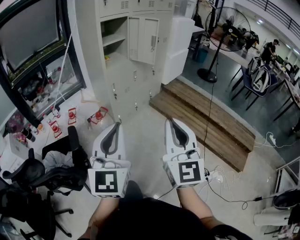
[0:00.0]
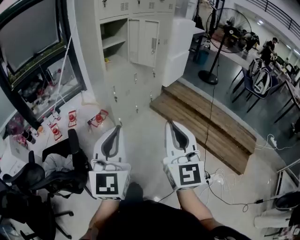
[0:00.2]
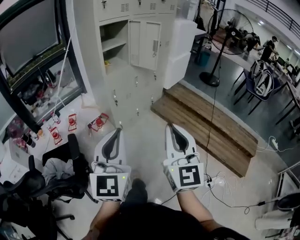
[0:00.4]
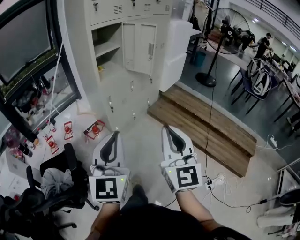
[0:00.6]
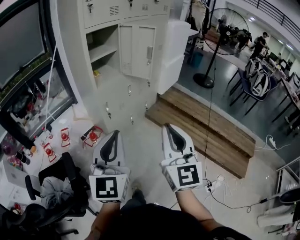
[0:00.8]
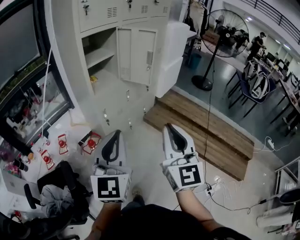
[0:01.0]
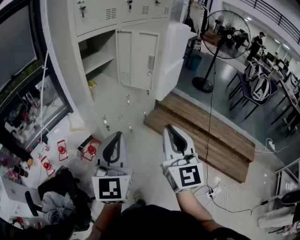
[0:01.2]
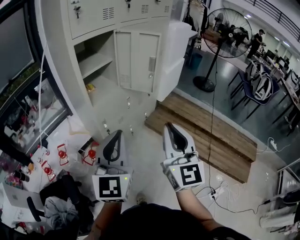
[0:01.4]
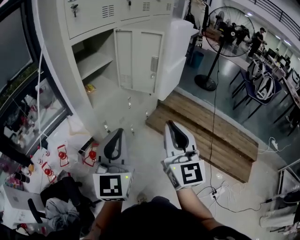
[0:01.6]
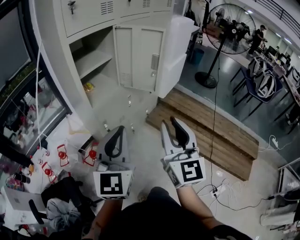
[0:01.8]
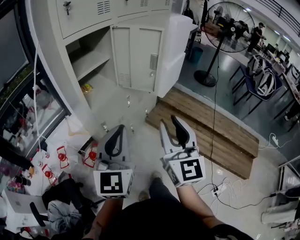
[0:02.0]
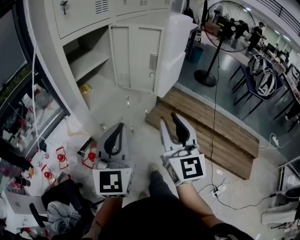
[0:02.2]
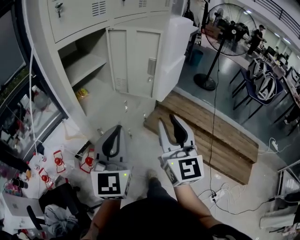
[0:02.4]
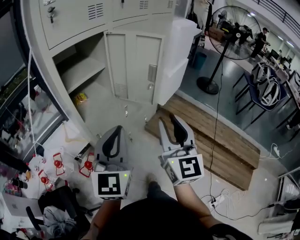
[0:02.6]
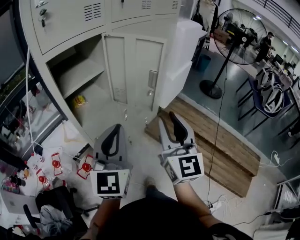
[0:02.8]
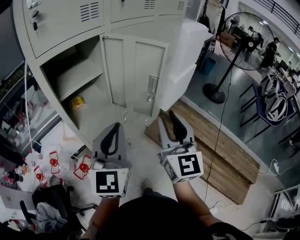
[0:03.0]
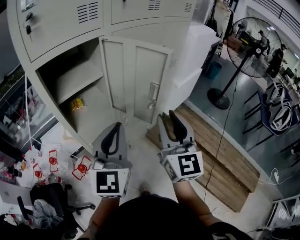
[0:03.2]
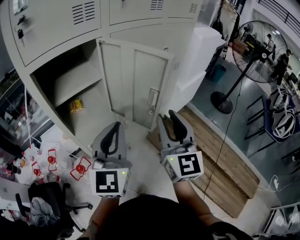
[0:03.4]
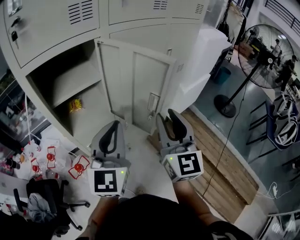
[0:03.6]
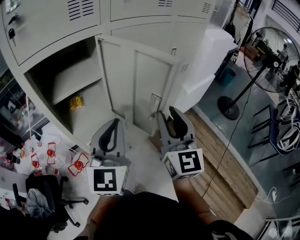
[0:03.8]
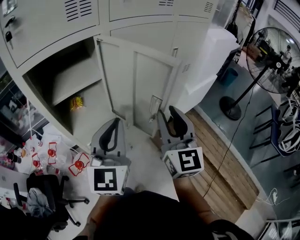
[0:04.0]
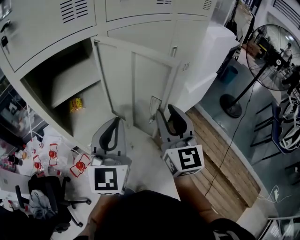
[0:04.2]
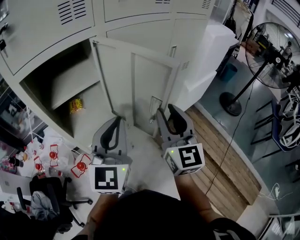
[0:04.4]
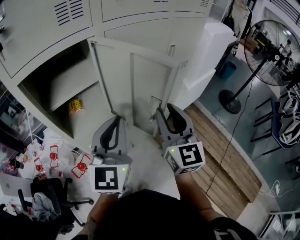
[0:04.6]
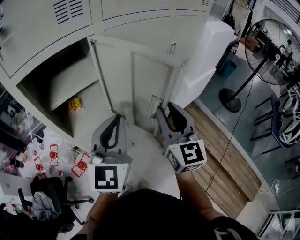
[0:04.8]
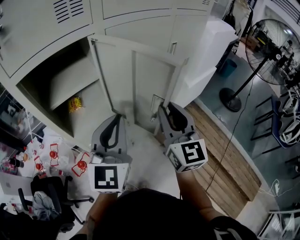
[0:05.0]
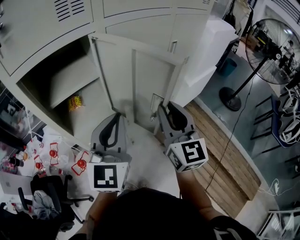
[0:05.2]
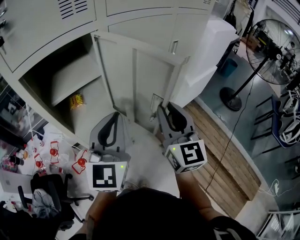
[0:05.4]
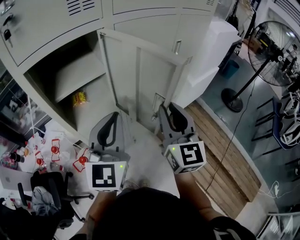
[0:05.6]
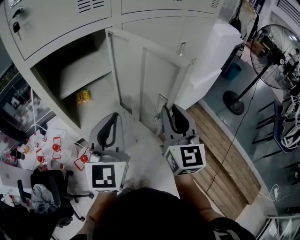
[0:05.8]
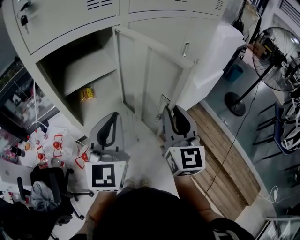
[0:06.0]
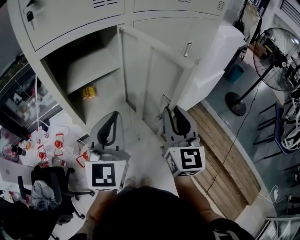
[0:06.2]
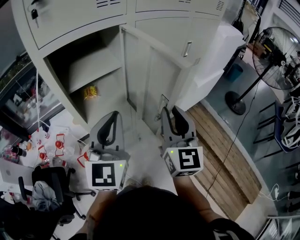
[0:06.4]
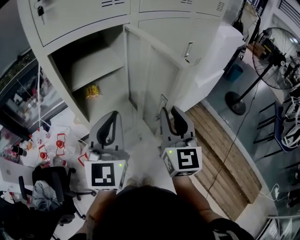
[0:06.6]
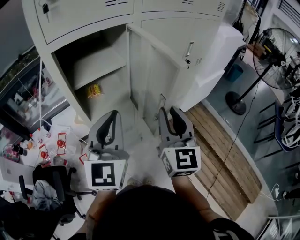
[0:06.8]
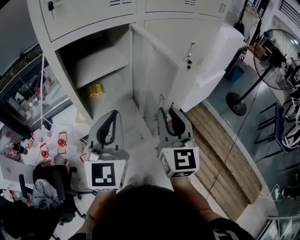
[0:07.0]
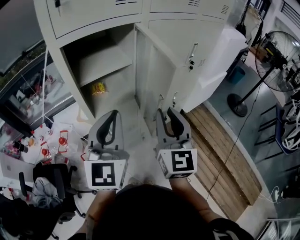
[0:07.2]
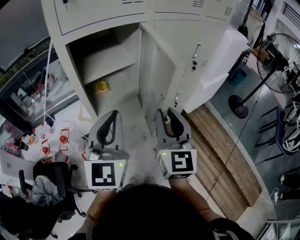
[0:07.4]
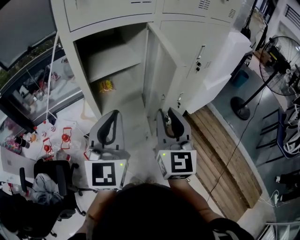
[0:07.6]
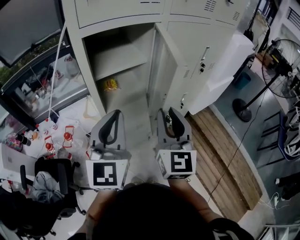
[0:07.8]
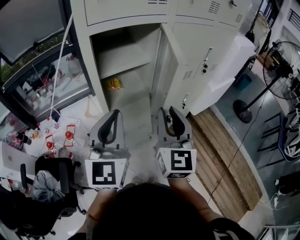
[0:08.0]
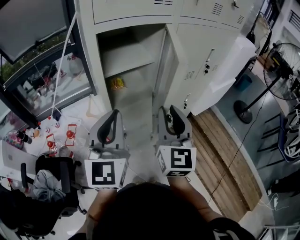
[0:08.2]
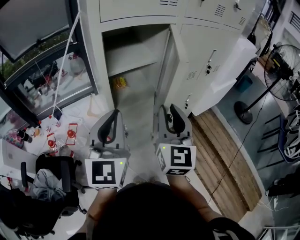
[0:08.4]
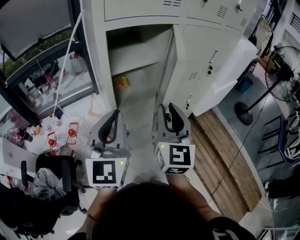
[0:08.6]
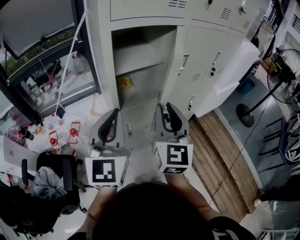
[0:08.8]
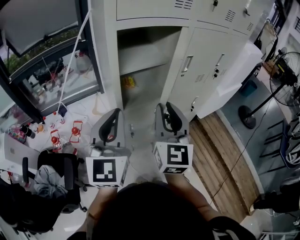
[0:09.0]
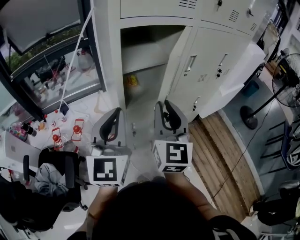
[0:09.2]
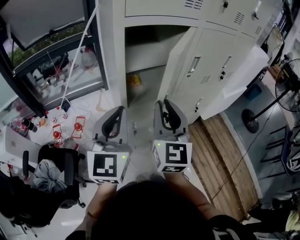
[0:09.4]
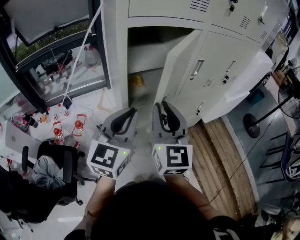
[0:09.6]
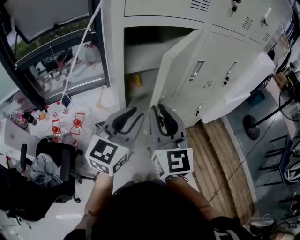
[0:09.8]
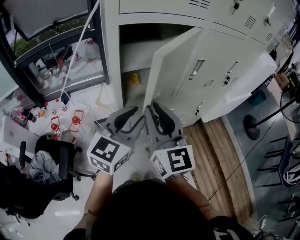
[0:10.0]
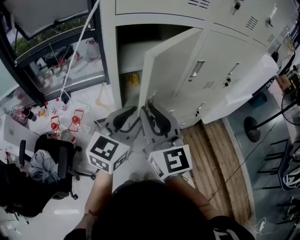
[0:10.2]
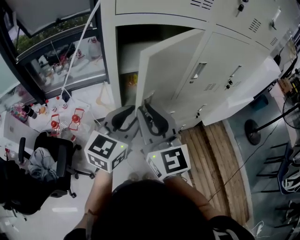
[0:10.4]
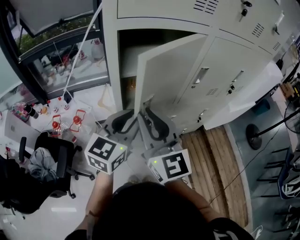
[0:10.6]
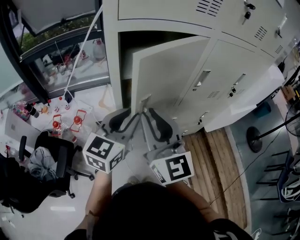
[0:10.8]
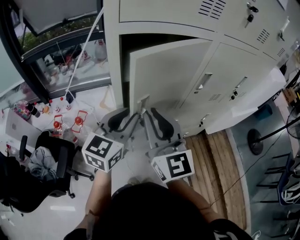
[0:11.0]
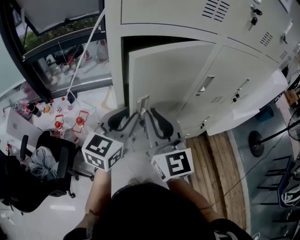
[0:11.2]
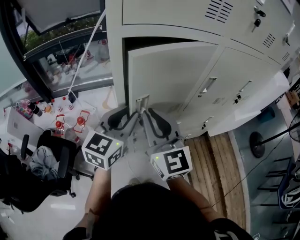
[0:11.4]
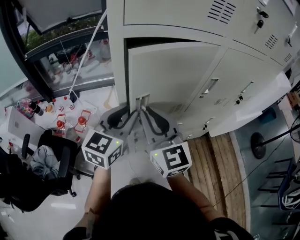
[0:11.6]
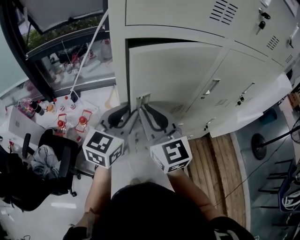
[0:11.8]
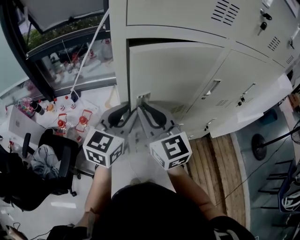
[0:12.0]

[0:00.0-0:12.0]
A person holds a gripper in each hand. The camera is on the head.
0:00.0 to 0:01.6: The two grippers go roughly 35 cm forward.
0:01.6 to 0:03.0: Both grippers move forward, approximately 20 cm. The right gripper opens.
0:03.0 to 0:04.4: The grippers both shift forward by approximately 15 cm.
0:04.4 to 0:06.0: The left gripper heads to the left, covering roughly 5 cm.
0:06.0 to 0:07.6: The grippers both shift to the left and backward by approximately 10 cm.
0:07.6 to 0:09.0: The grippers both shift to the left by approximately 10 cm.
0:09.0 to 0:10.4: The right gripper goes approximately 5 cm to the left, and rotates approximately 30 degrees; the left gripper moves forward, to the right and downward, some 10 cm, rotates roughly 20 degrees, and opens.
0:10.4 to 0:12.0: The grippers both shift forward by about 5 cm.

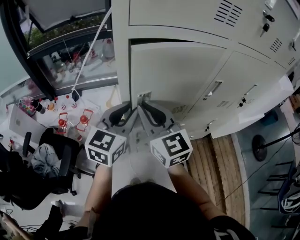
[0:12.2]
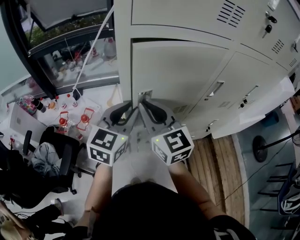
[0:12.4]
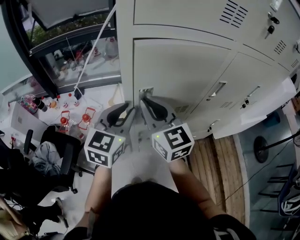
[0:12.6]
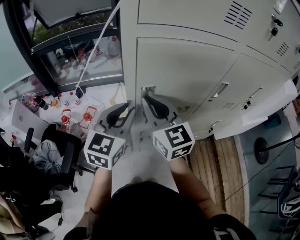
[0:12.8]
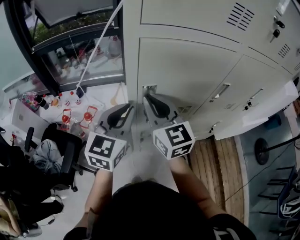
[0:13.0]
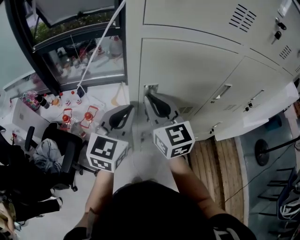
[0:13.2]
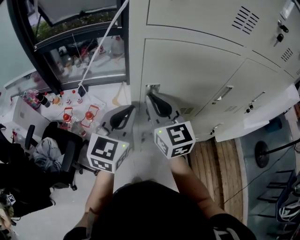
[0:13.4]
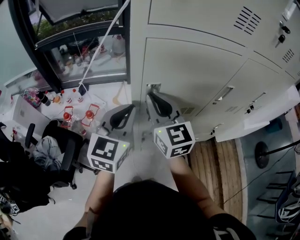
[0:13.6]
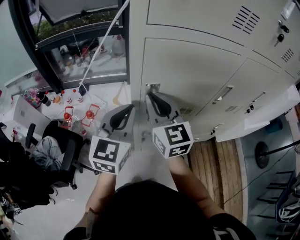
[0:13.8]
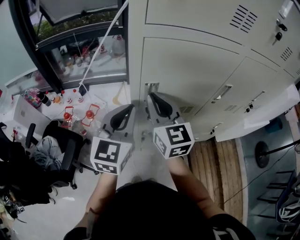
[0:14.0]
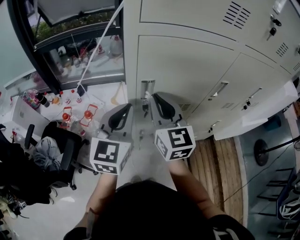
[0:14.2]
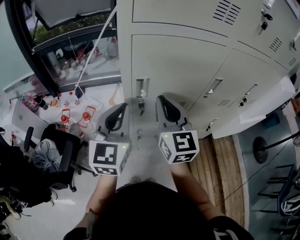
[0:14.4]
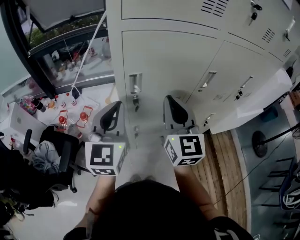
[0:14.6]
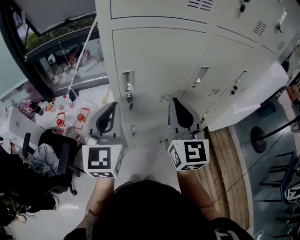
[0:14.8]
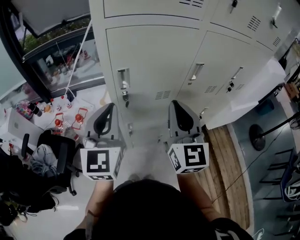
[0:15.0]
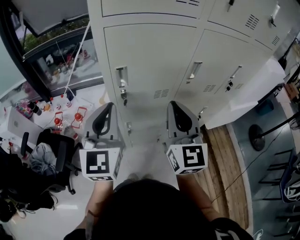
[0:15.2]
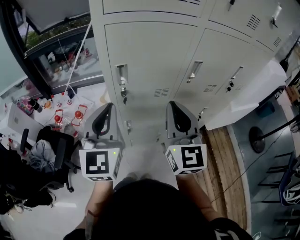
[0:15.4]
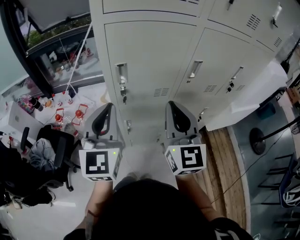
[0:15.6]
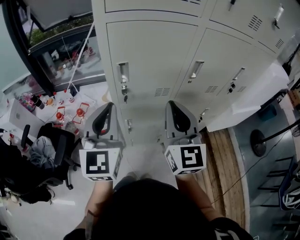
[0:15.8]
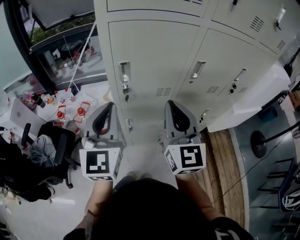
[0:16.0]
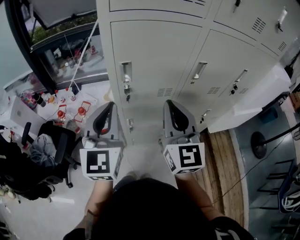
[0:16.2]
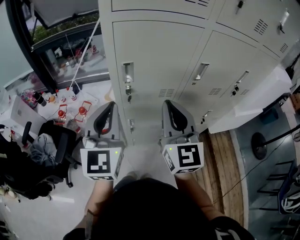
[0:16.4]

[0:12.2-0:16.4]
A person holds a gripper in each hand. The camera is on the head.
0:12.2 to 0:13.6: The grippers move only a little.
0:13.6 to 0:15.0: The right gripper goes about 20 cm to the right and backward, and swivels about 20 degrees. The left gripper moves backward, roughly 5 cm.
0:15.0 to 0:16.4: The grippers stay close to where they were, moving slightly.

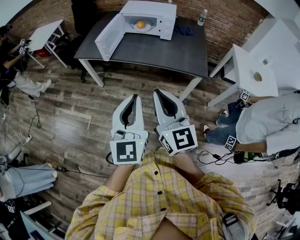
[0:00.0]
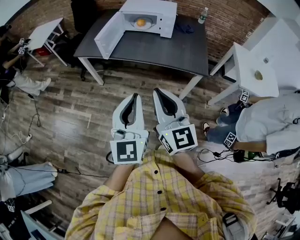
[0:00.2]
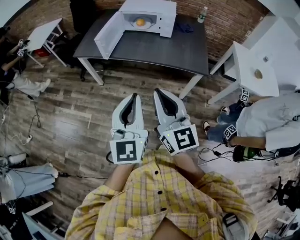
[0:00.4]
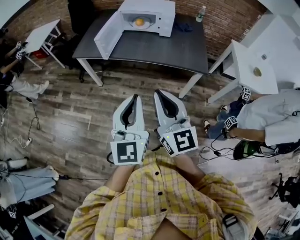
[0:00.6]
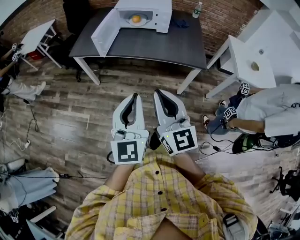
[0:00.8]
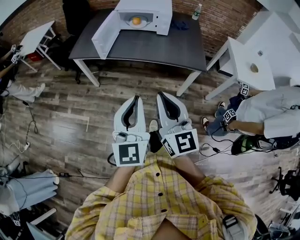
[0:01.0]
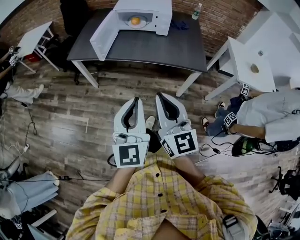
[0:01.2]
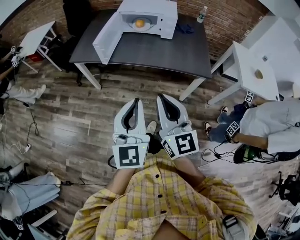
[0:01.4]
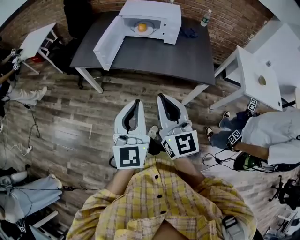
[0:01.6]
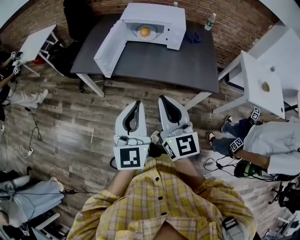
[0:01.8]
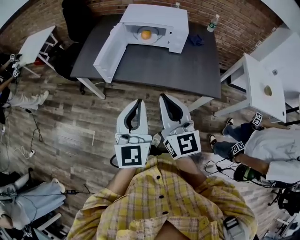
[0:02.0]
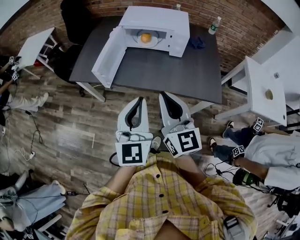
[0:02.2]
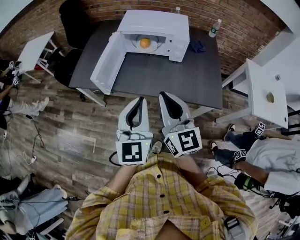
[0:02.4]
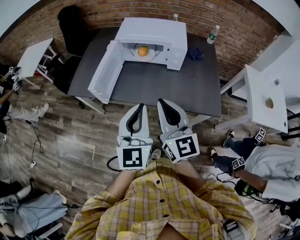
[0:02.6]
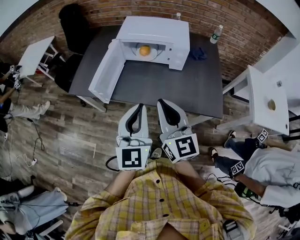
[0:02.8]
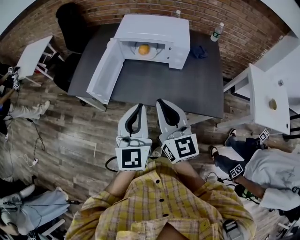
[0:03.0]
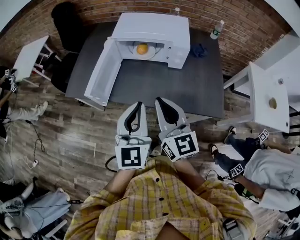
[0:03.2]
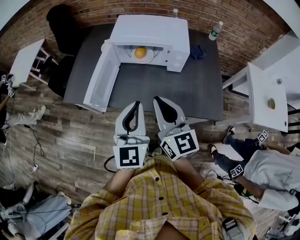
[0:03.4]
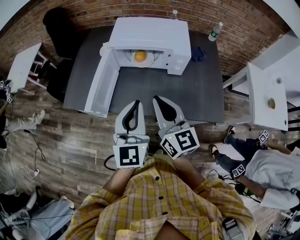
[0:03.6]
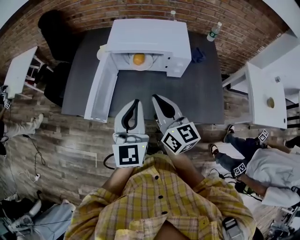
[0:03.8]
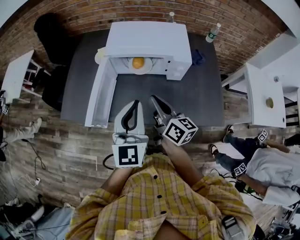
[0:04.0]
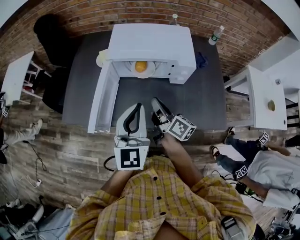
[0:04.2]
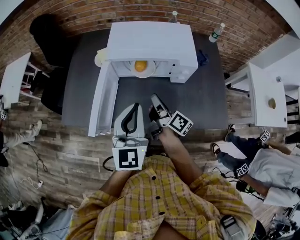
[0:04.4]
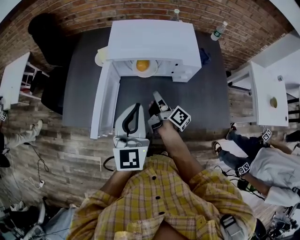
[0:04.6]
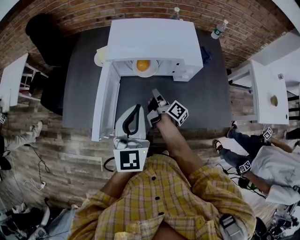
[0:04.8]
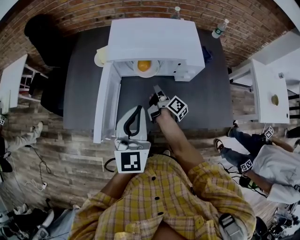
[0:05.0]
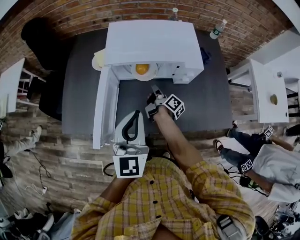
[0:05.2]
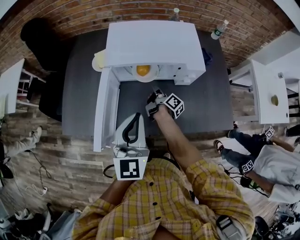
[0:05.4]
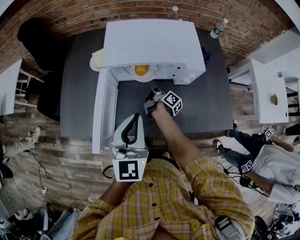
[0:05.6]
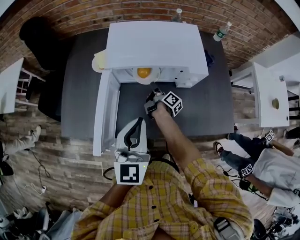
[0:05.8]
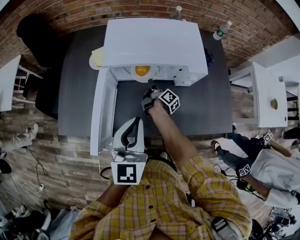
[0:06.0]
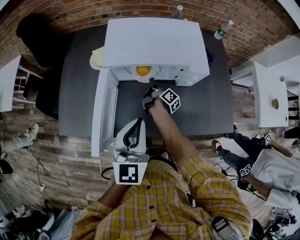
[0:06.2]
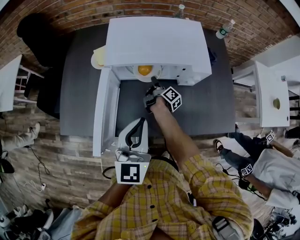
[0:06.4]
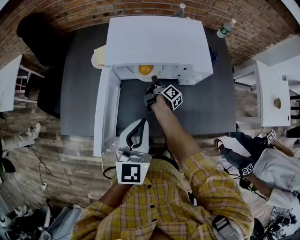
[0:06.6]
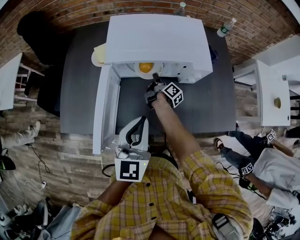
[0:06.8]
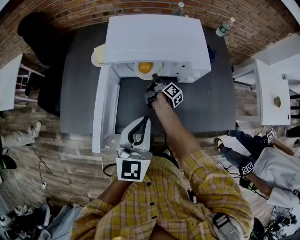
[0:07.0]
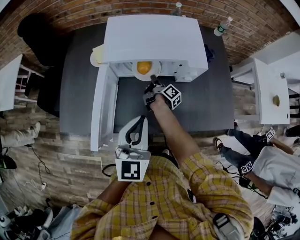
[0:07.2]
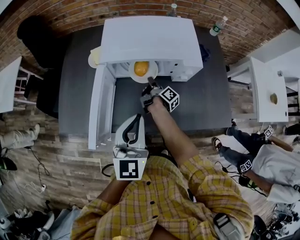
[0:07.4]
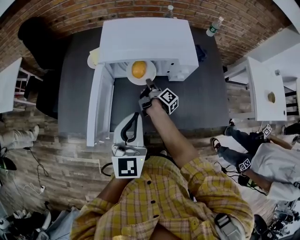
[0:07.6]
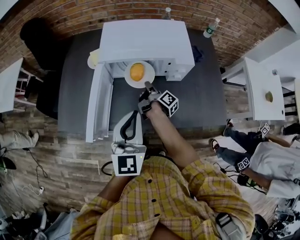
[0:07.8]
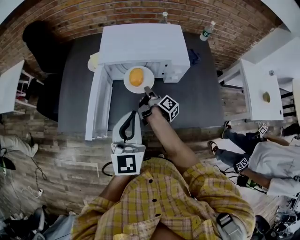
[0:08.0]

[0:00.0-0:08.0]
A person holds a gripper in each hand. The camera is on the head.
0:00.0 to 0:01.6: Both grippers travel together forward, approximately 10 cm.
0:01.6 to 0:03.2: Both grippers move forward, some 30 cm.
0:03.2 to 0:04.8: The left gripper moves forward, about 20 cm; the right gripper is displaced forward and downward by about 35 cm, and rolls clockwise, seen from behind, by some 70 degrees.
0:04.8 to 0:06.4: The right gripper is displaced forward and downward by some 15 cm.
0:06.4 to 0:08.0: The right gripper is displaced backward and upward by about 15 cm. The left gripper is displaced backward by some 5 cm.
